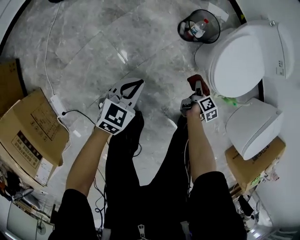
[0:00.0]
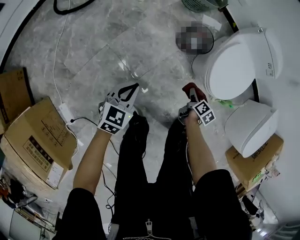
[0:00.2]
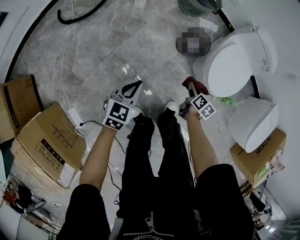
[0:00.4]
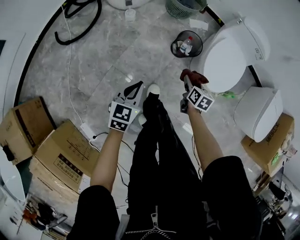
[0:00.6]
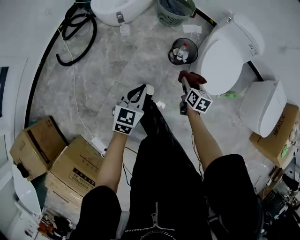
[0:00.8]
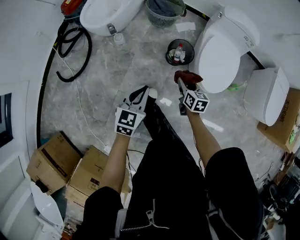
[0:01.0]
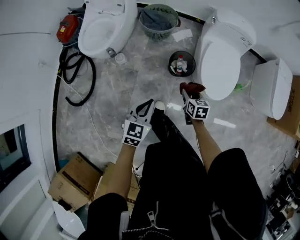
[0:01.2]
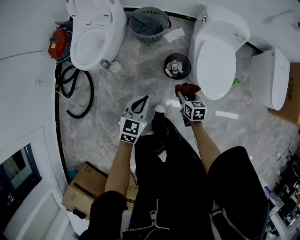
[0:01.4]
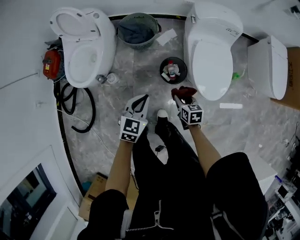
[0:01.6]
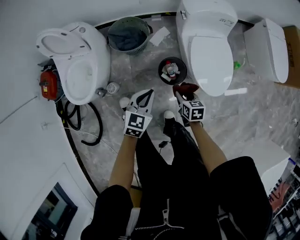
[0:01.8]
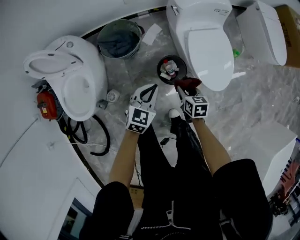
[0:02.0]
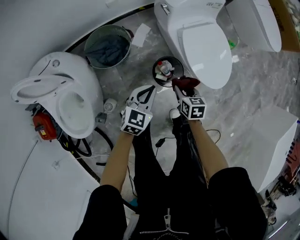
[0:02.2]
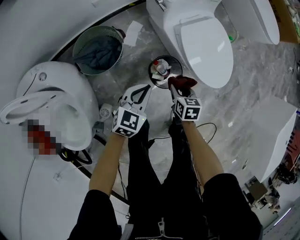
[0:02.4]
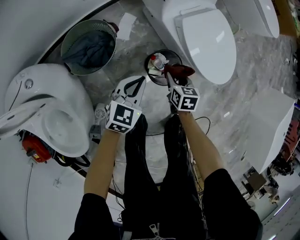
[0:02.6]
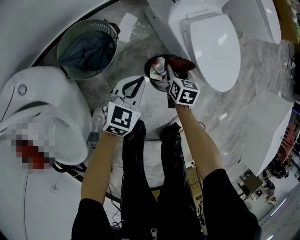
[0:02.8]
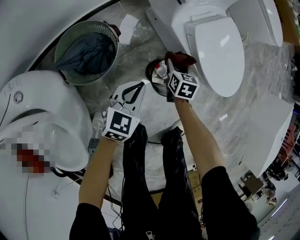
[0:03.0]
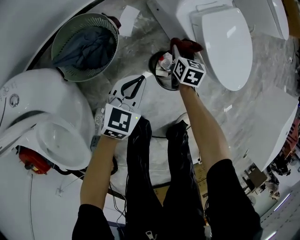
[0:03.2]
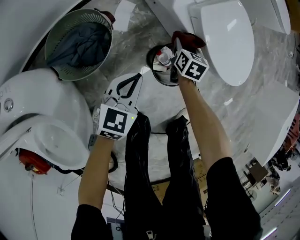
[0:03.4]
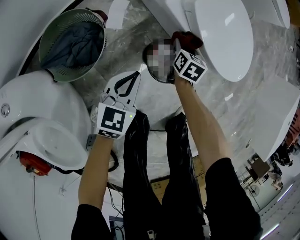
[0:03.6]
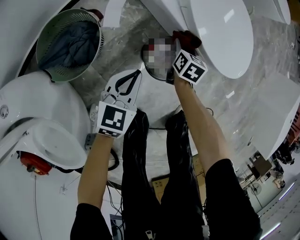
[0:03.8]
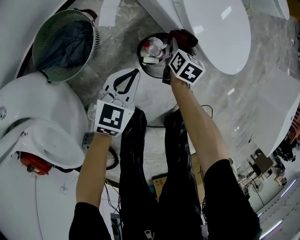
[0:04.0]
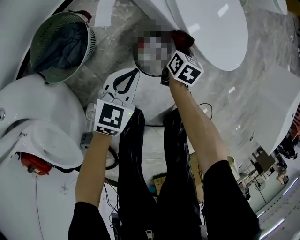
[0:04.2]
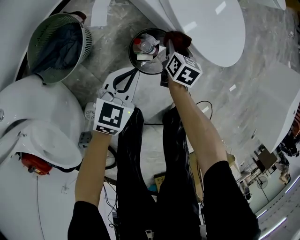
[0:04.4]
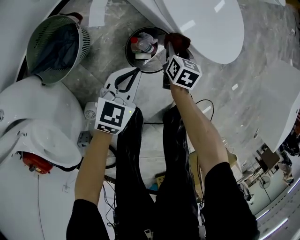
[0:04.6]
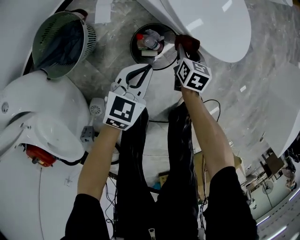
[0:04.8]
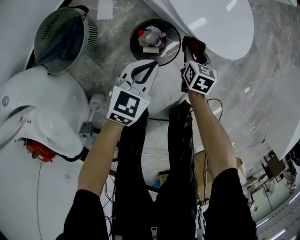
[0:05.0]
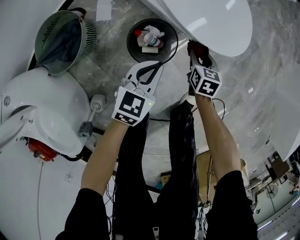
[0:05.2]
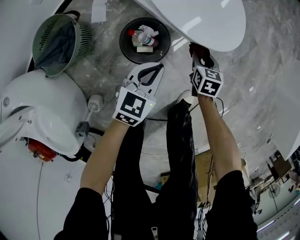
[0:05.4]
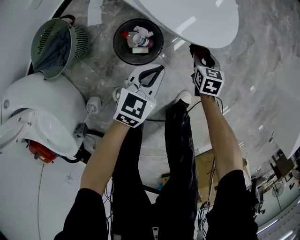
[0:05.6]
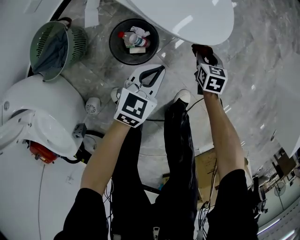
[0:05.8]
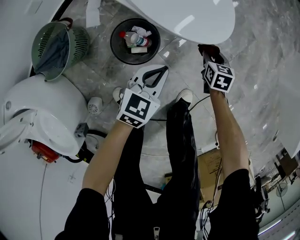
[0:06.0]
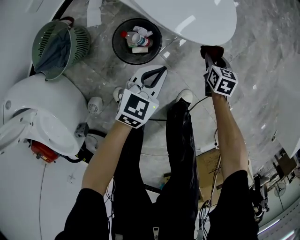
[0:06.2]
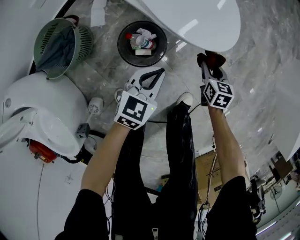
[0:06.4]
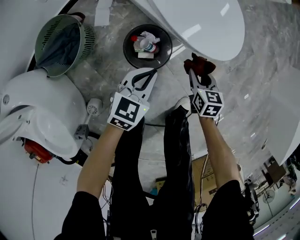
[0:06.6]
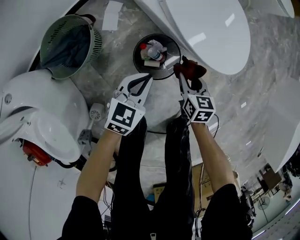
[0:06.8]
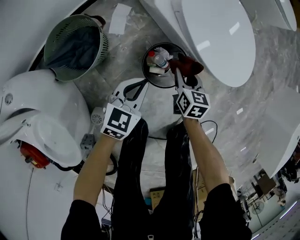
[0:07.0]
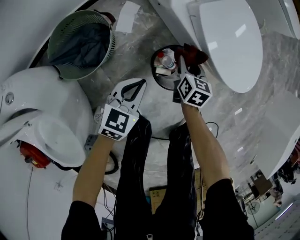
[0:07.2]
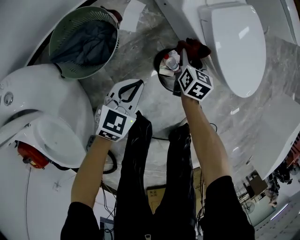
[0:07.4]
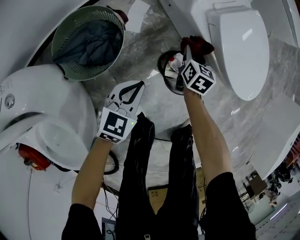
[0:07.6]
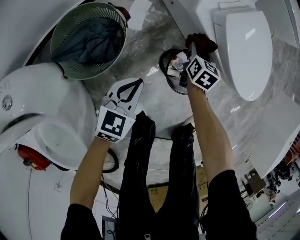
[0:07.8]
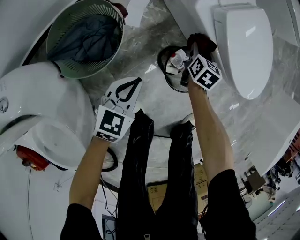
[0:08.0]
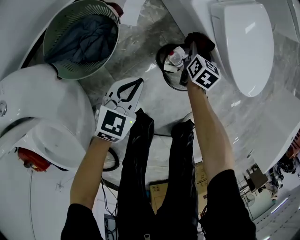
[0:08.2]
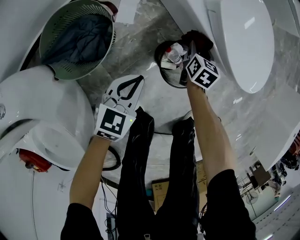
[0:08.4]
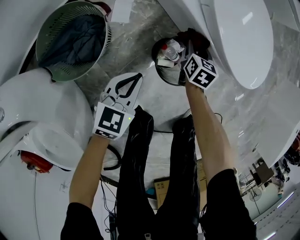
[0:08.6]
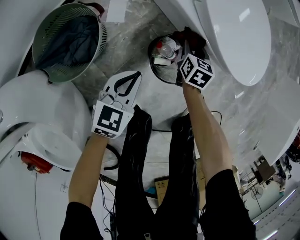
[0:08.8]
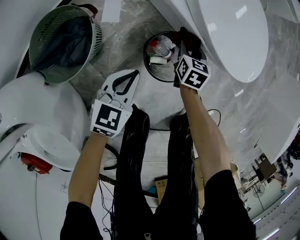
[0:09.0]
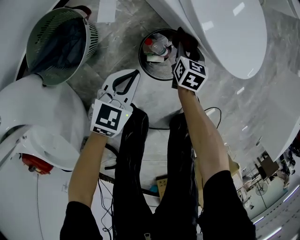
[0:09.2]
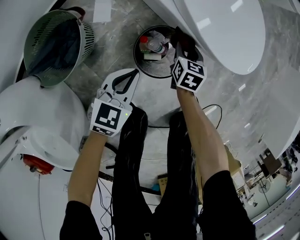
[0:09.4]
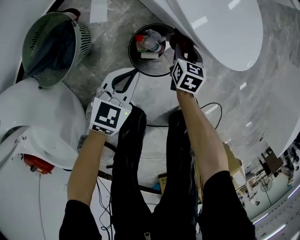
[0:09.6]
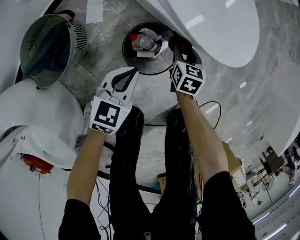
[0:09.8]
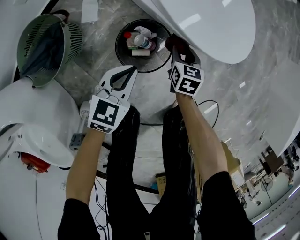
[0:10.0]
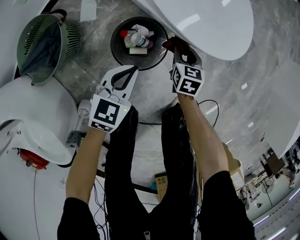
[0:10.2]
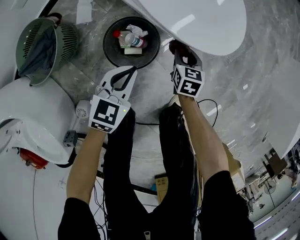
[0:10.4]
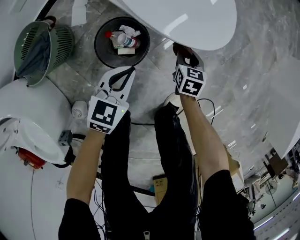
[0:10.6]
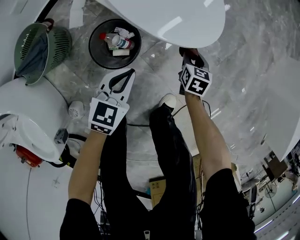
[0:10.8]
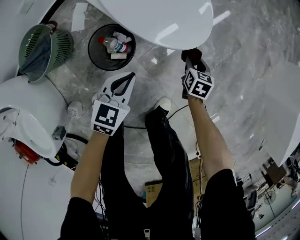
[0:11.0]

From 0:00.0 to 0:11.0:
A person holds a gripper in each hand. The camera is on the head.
From 0:00.0 to 0:01.6: The left gripper heads forward and upward, covering approximately 50 cm, and changes its angle by approximately 40 degrees; the right gripper is displaced upward, to the left and forward by approximately 40 cm.
From 0:01.6 to 0:03.2: The right gripper moves approximately 40 cm, and turns by approximately 50 degrees. The left gripper moves about 40 cm, and rotates some 40 degrees.
From 0:03.2 to 0:04.8: The two grippers go approximately 20 cm to the right.
From 0:04.8 to 0:06.2: Both grippers travel together to the right, approximately 20 cm.
From 0:06.2 to 0:07.8: The grippers both shift to the left by roughly 35 cm.
From 0:07.8 to 0:09.4: The two grippers go roughly 15 cm to the right.
From 0:09.4 to 0:11.0: Both grippers travel together to the right, approximately 25 cm.

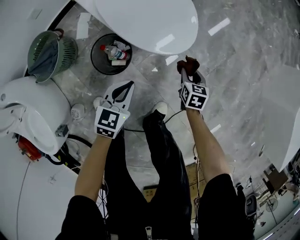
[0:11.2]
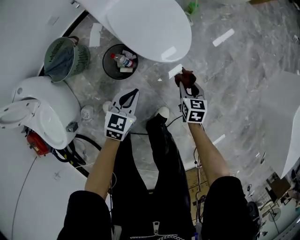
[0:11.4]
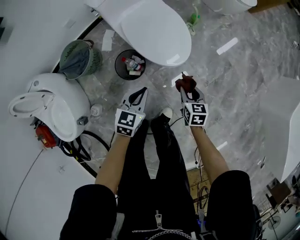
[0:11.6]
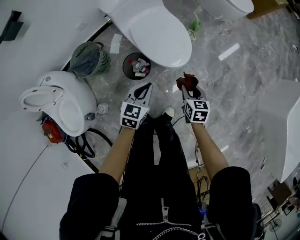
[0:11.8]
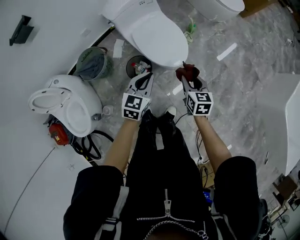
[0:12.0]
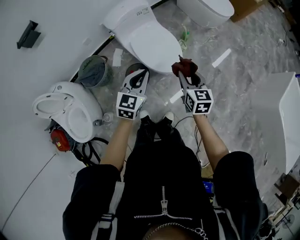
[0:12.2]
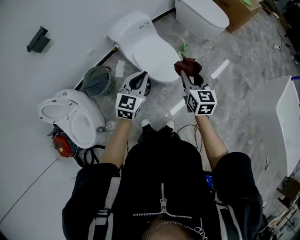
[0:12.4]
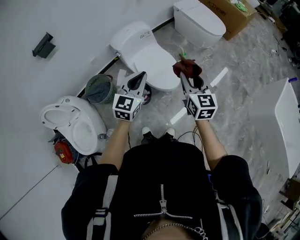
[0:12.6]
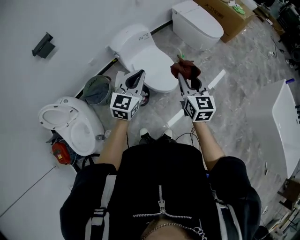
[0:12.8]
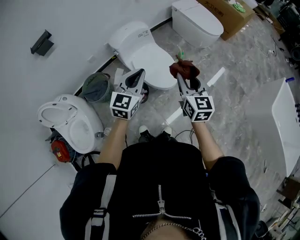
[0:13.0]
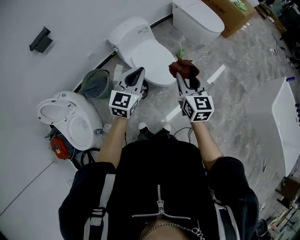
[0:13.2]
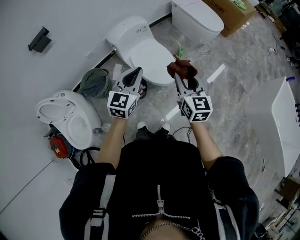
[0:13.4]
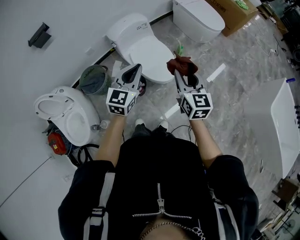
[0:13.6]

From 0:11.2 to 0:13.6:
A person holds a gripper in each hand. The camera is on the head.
From 0:11.2 to 0:12.4: The grippers both shift upward by roughly 60 cm. The right gripper tilts its fingers roughly 30 degrees upward, while the left gripper turns by some 30 degrees.
From 0:12.4 to 0:13.6: Both grippers move upward, some 5 cm.

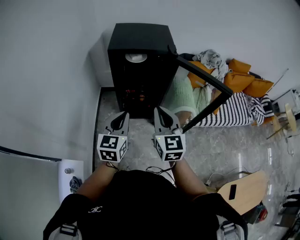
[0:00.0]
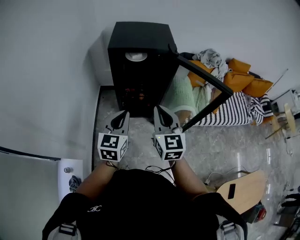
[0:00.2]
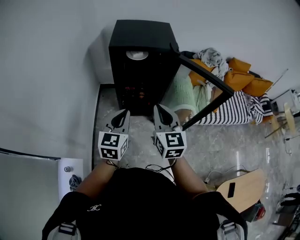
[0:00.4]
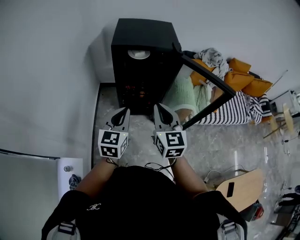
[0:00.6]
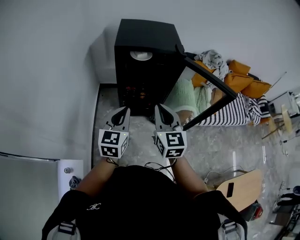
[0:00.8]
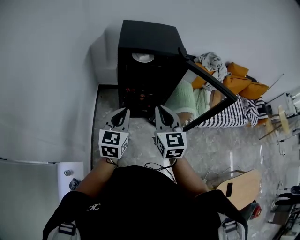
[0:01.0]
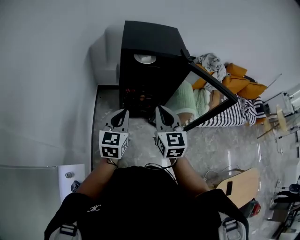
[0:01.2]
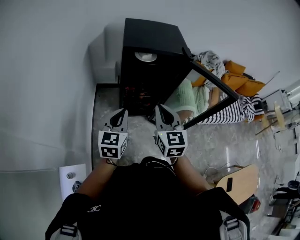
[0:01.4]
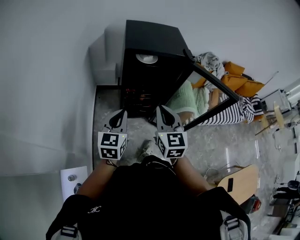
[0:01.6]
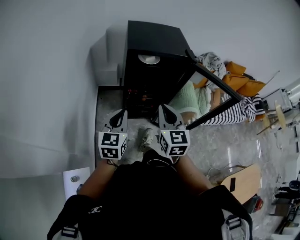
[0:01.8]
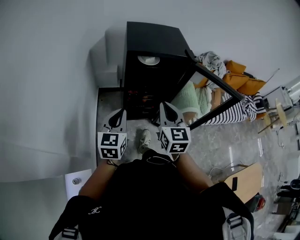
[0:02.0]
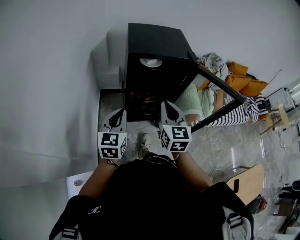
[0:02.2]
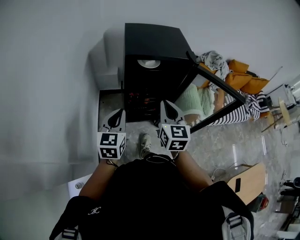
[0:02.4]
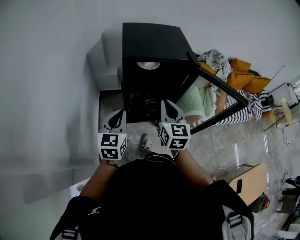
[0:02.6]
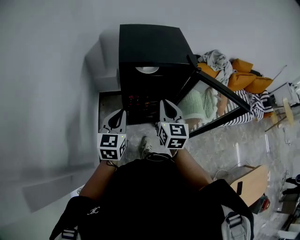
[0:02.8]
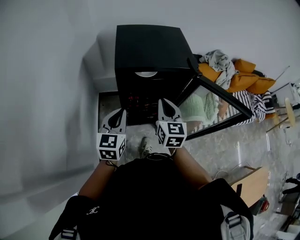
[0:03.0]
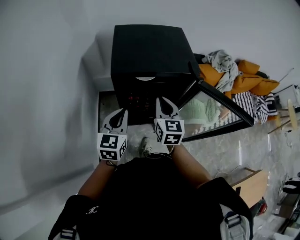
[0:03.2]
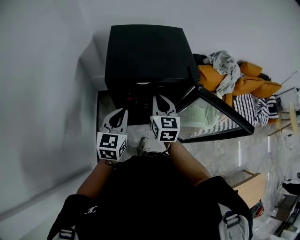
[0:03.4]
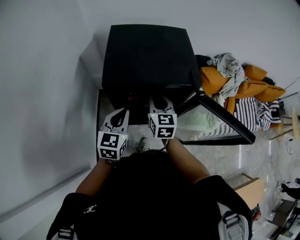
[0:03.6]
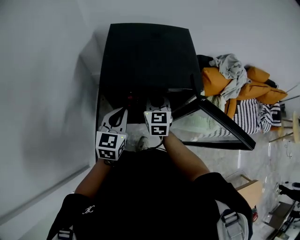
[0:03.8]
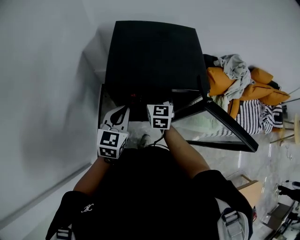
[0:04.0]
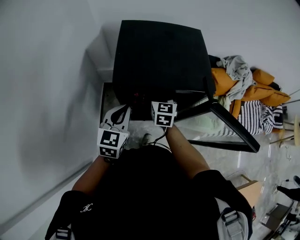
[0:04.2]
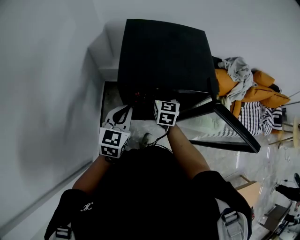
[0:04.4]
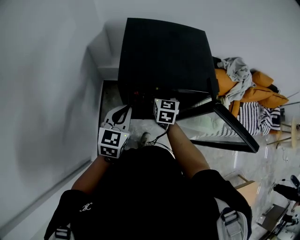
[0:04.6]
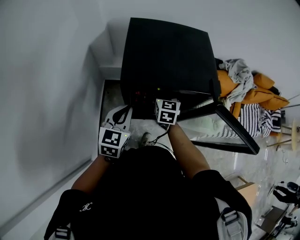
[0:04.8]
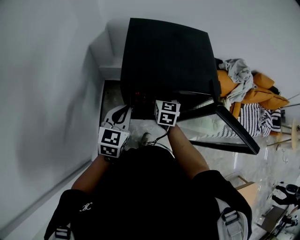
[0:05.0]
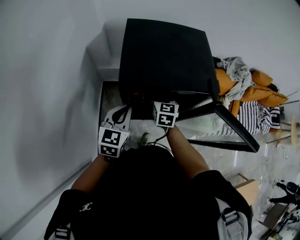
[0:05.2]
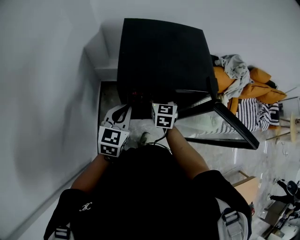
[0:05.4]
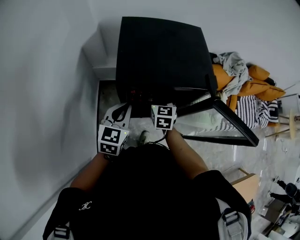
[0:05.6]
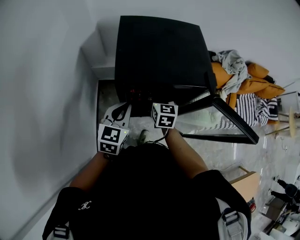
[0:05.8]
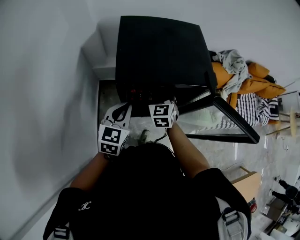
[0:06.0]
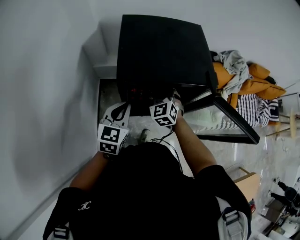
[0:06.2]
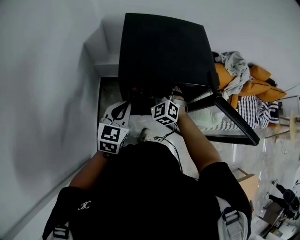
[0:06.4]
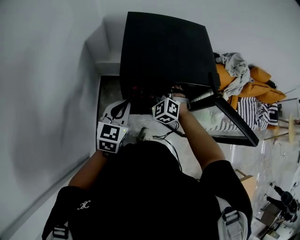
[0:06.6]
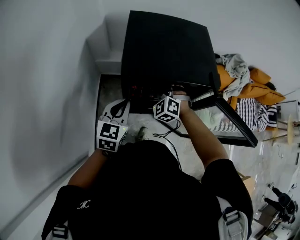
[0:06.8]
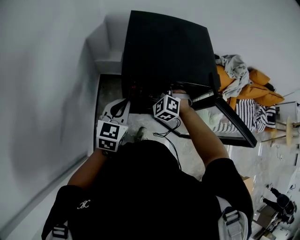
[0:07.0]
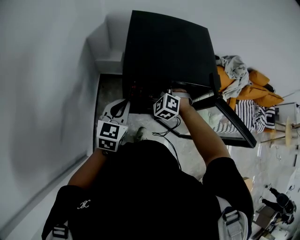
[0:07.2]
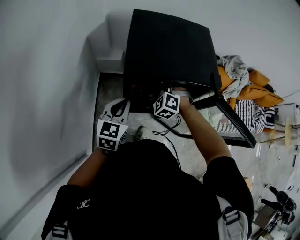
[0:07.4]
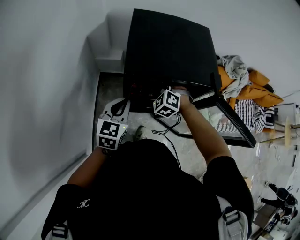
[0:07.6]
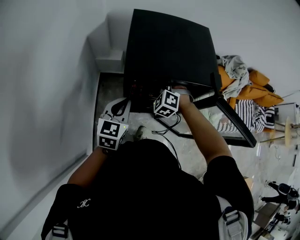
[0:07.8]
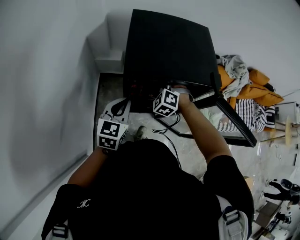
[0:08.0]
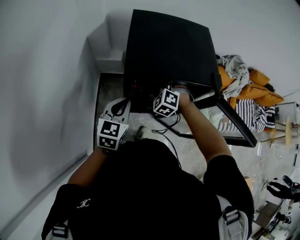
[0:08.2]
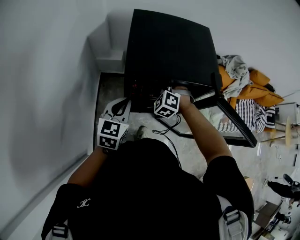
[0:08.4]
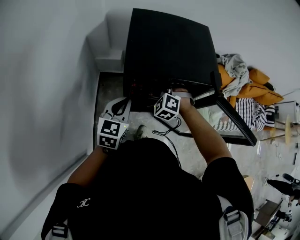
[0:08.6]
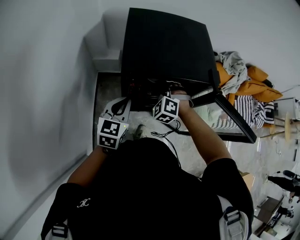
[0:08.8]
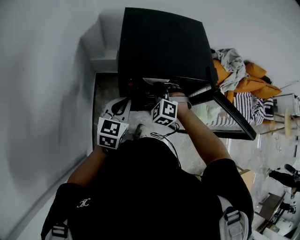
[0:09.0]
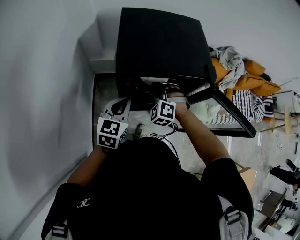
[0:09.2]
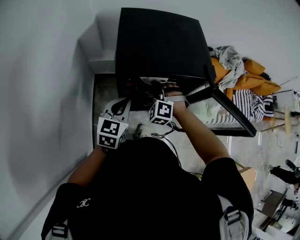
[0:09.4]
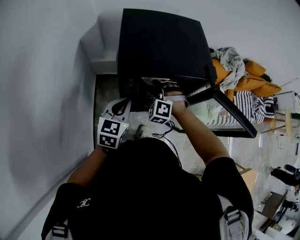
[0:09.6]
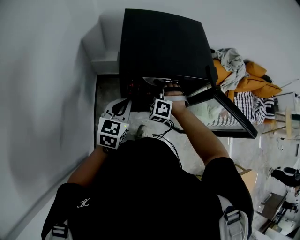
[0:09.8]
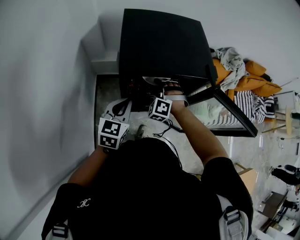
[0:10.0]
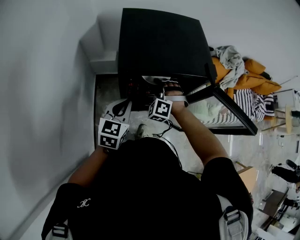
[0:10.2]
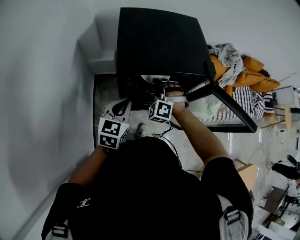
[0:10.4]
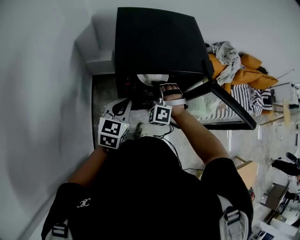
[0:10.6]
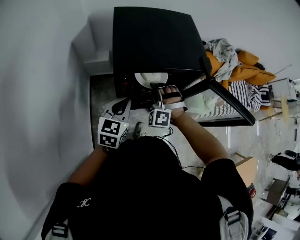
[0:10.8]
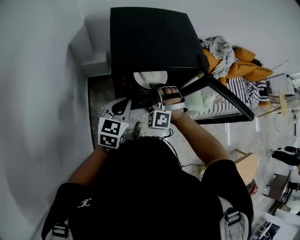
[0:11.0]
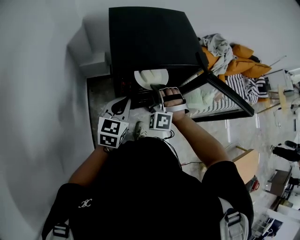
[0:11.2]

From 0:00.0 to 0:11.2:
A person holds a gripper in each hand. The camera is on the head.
From 0:00.0 to 0:01.6: The grippers both shift to the left by about 10 cm.
From 0:01.6 to 0:03.2: The two grippers go about 20 cm forward.
From 0:03.2 to 0:04.8: The left gripper shifts roughly 5 cm forward; the right gripper goes about 20 cm forward and downward.
From 0:04.8 to 0:06.4: The right gripper twists approximately 50 degrees counterclockwise, seen from behind.
From 0:06.4 to 0:08.0: The right gripper changes its angle by roughly 20 degrees.
From 0:08.0 to 0:09.6: There are only small adjustments of the grippers.
From 0:09.6 to 0:11.2: The right gripper shifts about 5 cm backward.
